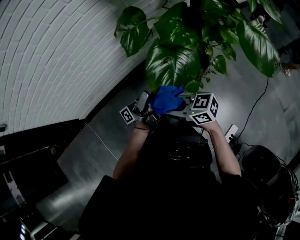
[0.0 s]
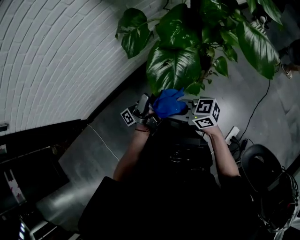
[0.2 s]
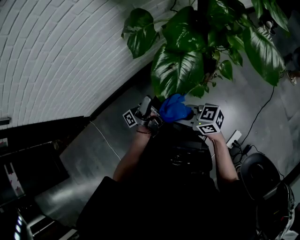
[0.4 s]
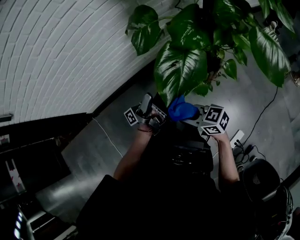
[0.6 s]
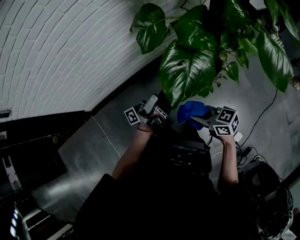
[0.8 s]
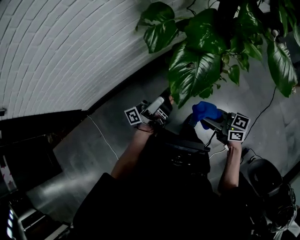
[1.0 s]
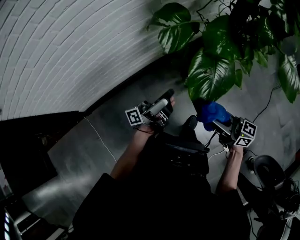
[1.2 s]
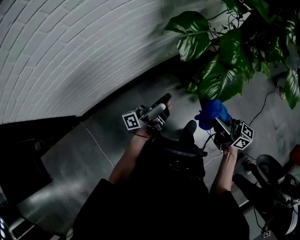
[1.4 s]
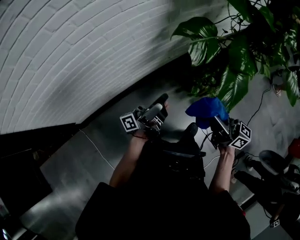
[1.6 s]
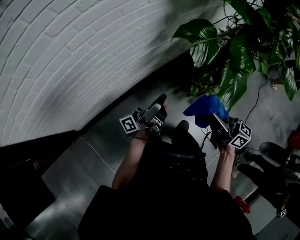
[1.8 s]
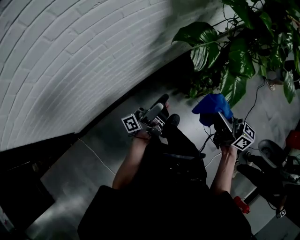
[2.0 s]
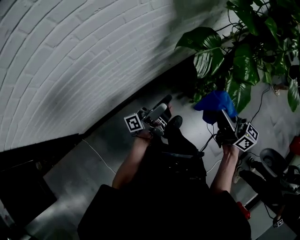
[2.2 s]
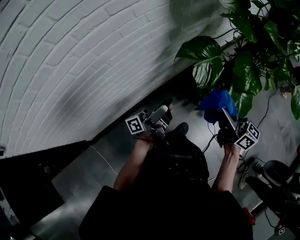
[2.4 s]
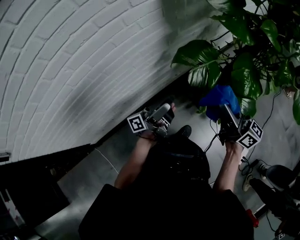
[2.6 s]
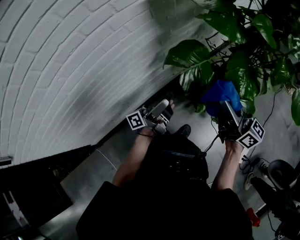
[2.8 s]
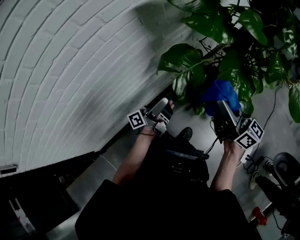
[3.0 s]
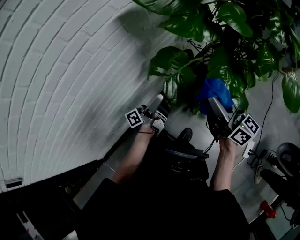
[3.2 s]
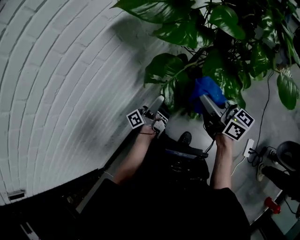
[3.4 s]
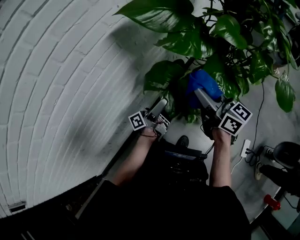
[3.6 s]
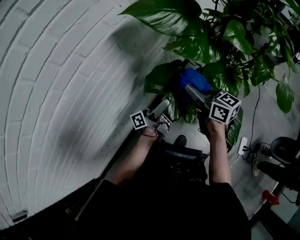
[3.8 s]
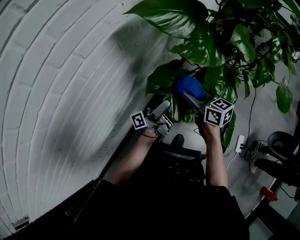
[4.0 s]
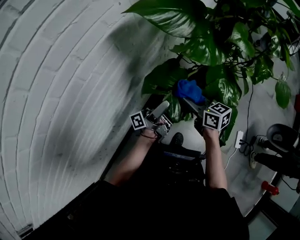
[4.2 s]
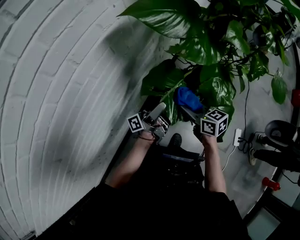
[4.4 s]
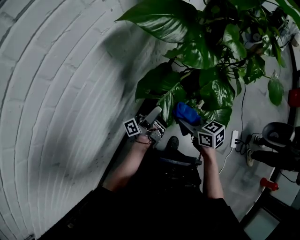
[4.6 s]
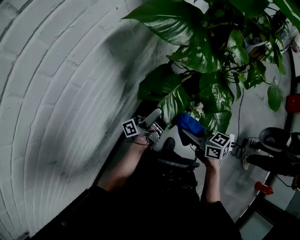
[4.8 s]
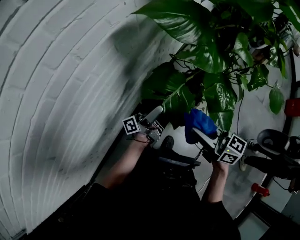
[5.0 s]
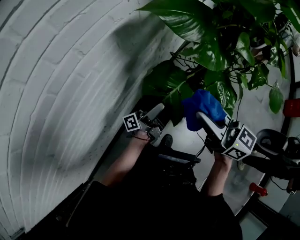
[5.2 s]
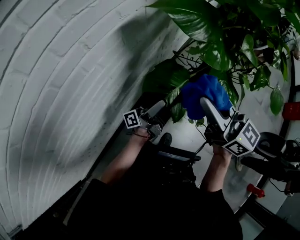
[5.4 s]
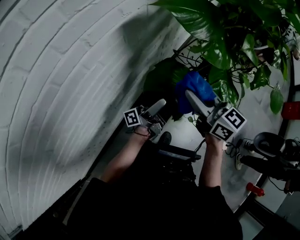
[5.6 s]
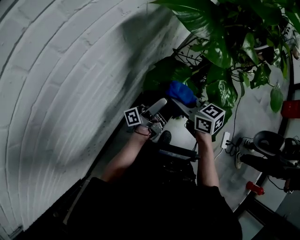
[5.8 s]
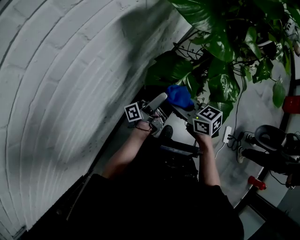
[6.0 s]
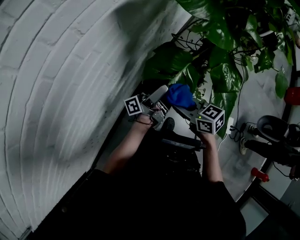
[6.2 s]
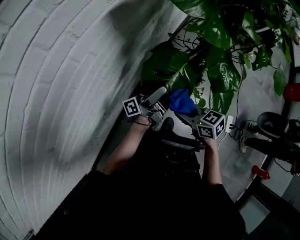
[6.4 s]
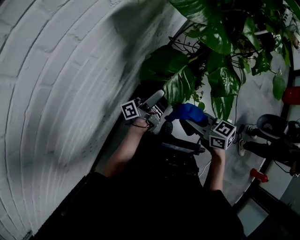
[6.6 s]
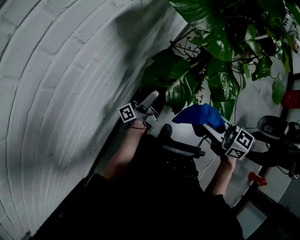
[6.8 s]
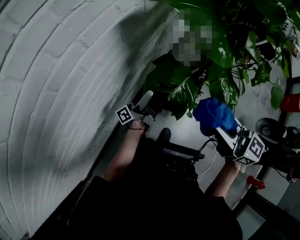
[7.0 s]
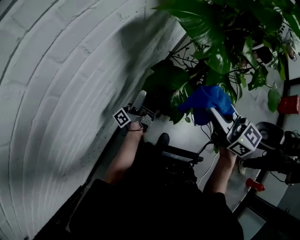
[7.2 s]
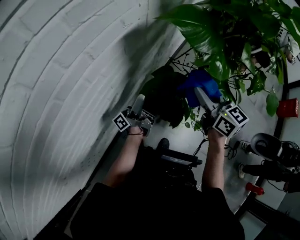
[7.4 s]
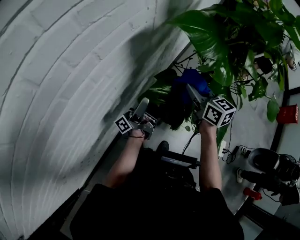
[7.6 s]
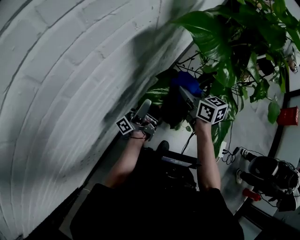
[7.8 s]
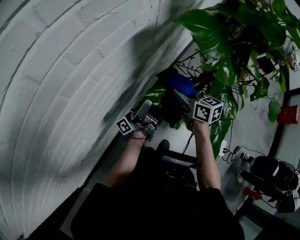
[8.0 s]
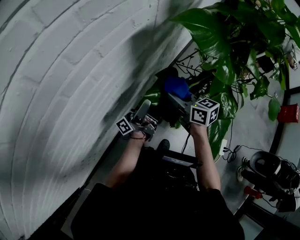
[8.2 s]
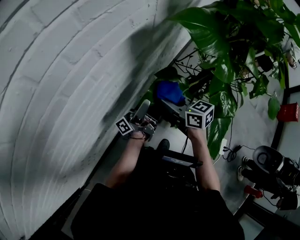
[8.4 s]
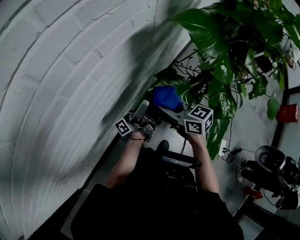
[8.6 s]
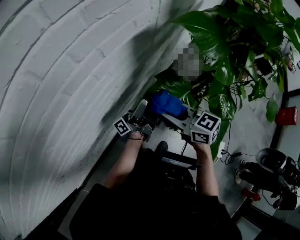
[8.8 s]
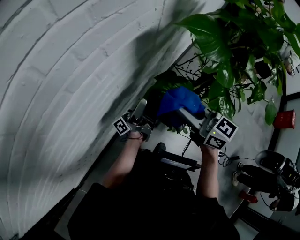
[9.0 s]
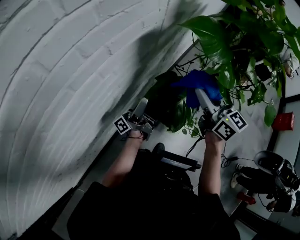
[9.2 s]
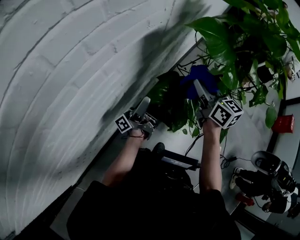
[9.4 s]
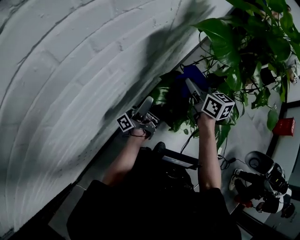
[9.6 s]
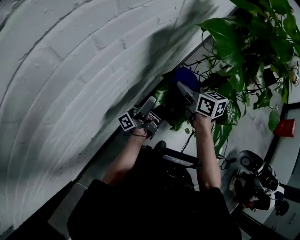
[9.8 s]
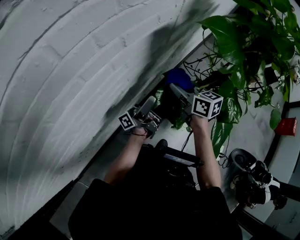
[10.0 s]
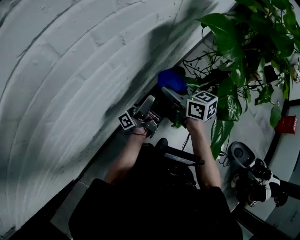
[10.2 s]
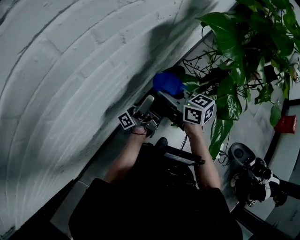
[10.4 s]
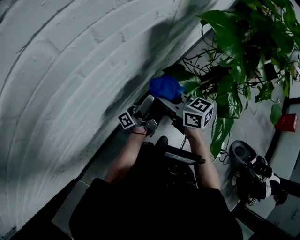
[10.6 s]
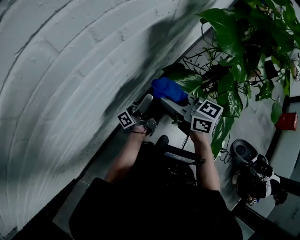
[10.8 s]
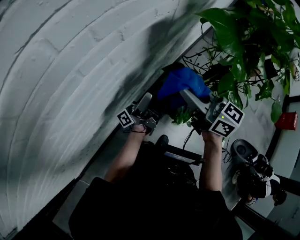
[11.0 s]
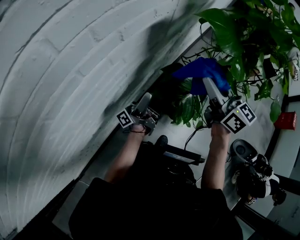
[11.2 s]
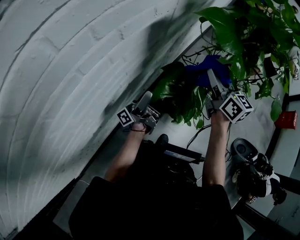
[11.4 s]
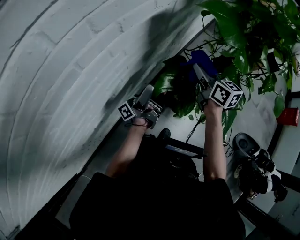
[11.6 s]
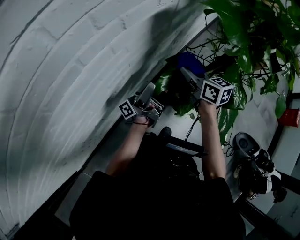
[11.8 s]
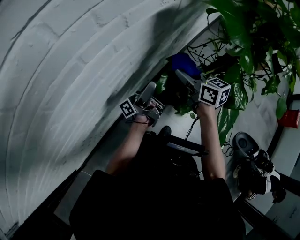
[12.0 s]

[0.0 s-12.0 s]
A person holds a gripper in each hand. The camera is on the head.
0.0 to 1.6 s: The right gripper changes place by about 15 cm, and turns by approximately 40 degrees.
1.6 to 3.0 s: The right gripper moves some 25 cm, and turns by some 20 degrees.
3.0 to 4.4 s: The right gripper goes roughly 15 cm downward, and points its fingers some 30 degrees further downward.
4.4 to 6.0 s: The right gripper moves roughly 25 cm upward and comes back.
6.0 to 7.6 s: The right gripper moves up and down over about 25 cm, changing direction 2 times, and rotates roughly 20 degrees.
7.6 to 9.0 s: The right gripper changes place by approximately 15 cm, and swivels about 20 degrees.
9.0 to 10.4 s: The right gripper moves approximately 15 cm.
10.4 to 12.0 s: The right gripper goes upward and returns, roughly 15 cm each way.

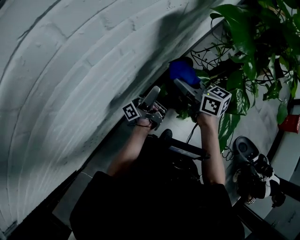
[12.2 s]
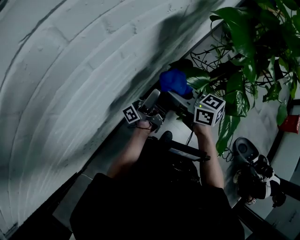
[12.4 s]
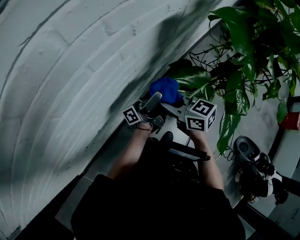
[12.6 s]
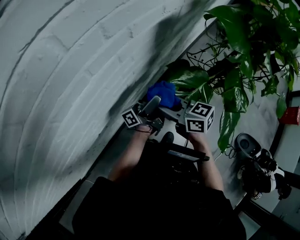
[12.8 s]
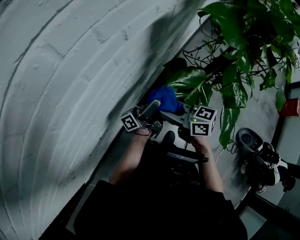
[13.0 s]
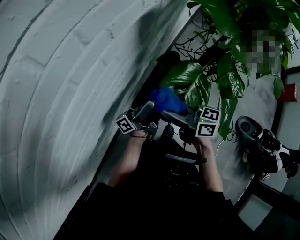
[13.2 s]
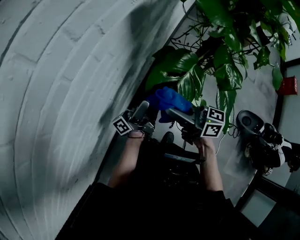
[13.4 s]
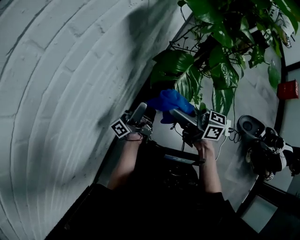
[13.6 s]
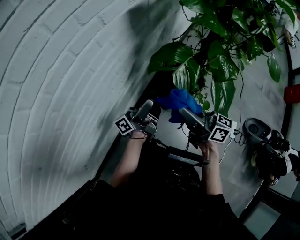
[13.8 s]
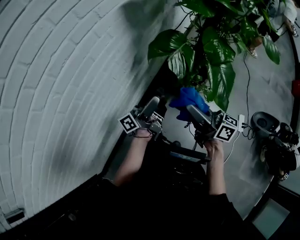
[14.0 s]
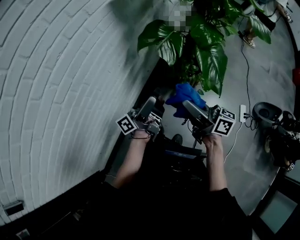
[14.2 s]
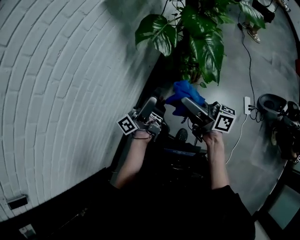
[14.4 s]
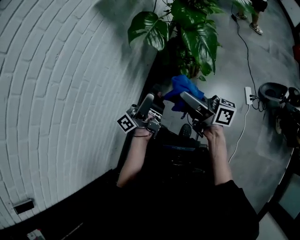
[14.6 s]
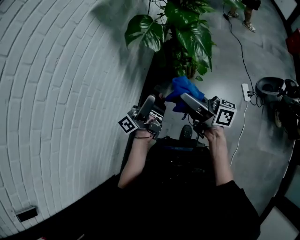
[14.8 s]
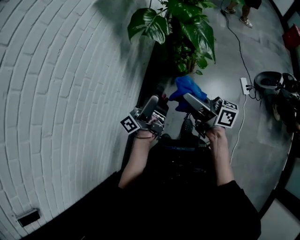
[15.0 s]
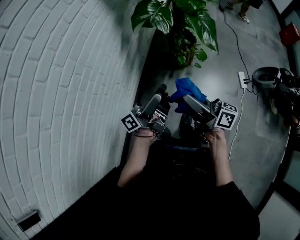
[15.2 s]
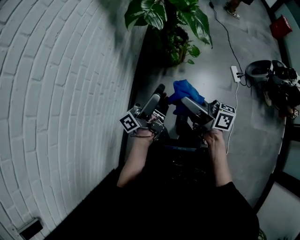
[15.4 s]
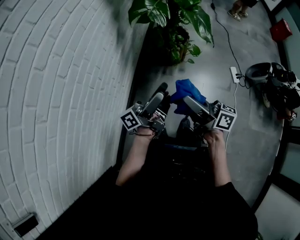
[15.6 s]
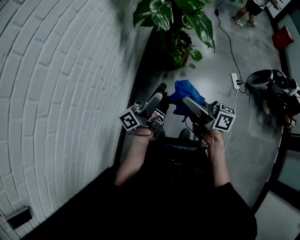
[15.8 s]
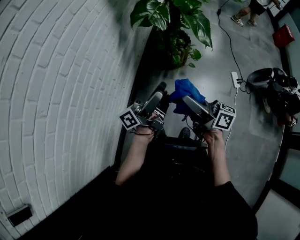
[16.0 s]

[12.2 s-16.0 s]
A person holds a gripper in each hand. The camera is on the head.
12.2 to 13.4 s: The right gripper changes place by approximately 15 cm, and changes its angle by approximately 20 degrees.
13.4 to 14.8 s: The right gripper ends up some 35 cm from where it was, and changes its angle by some 30 degrees.
14.8 to 16.0 s: The right gripper shifts by roughly 15 cm.

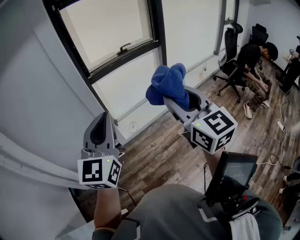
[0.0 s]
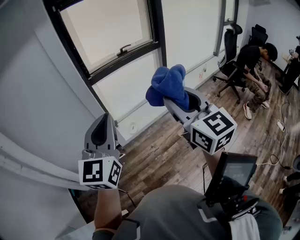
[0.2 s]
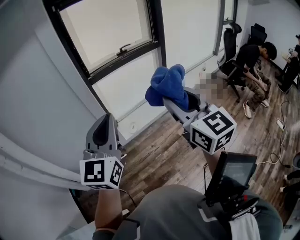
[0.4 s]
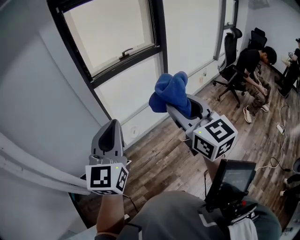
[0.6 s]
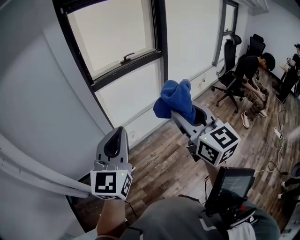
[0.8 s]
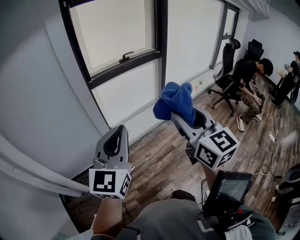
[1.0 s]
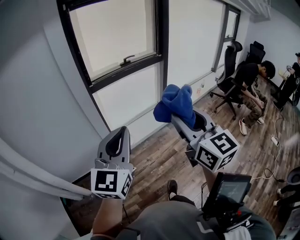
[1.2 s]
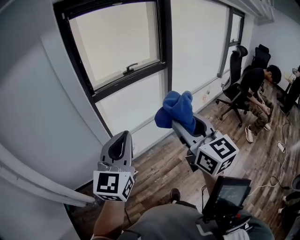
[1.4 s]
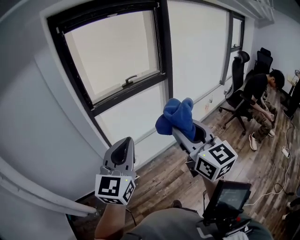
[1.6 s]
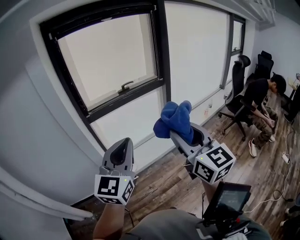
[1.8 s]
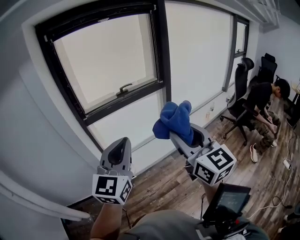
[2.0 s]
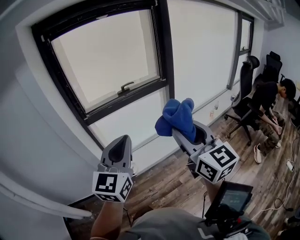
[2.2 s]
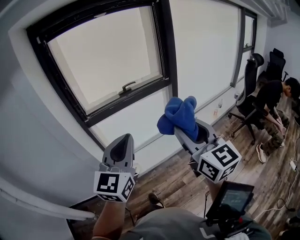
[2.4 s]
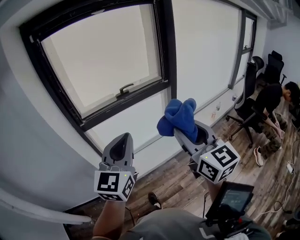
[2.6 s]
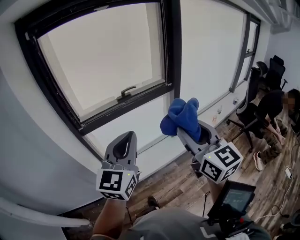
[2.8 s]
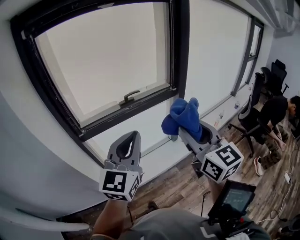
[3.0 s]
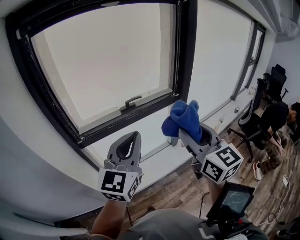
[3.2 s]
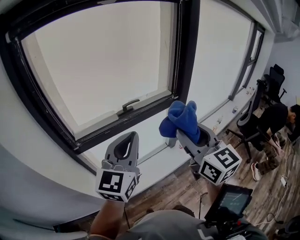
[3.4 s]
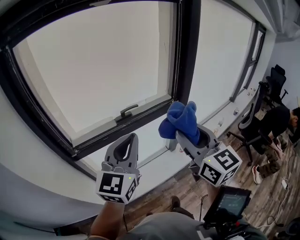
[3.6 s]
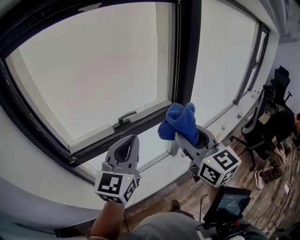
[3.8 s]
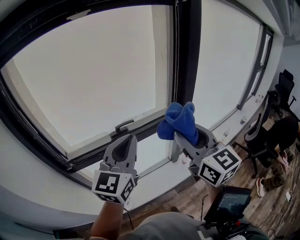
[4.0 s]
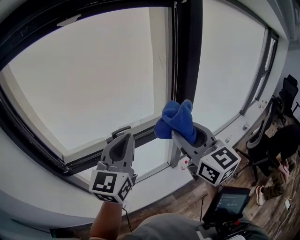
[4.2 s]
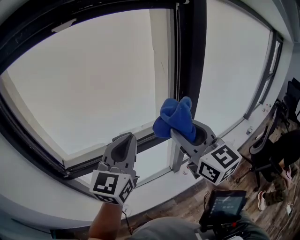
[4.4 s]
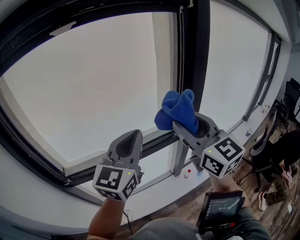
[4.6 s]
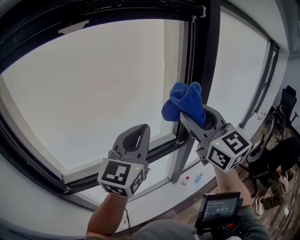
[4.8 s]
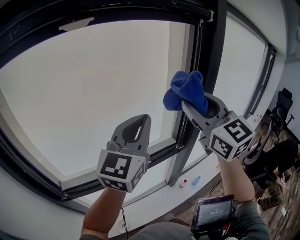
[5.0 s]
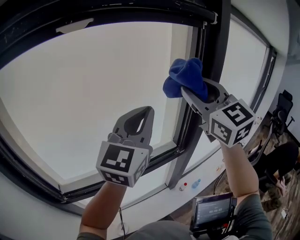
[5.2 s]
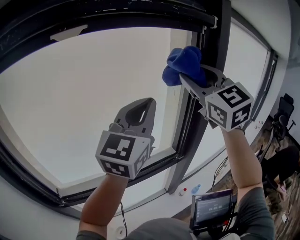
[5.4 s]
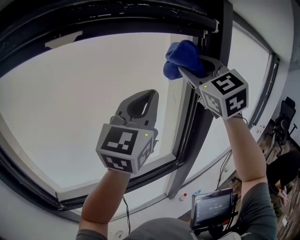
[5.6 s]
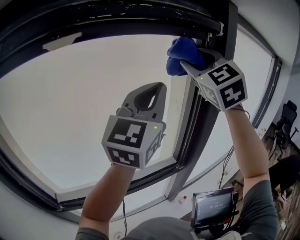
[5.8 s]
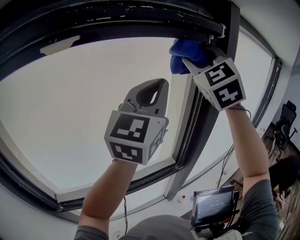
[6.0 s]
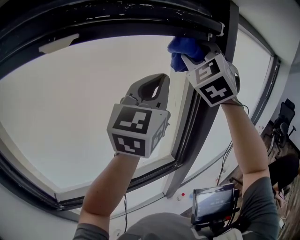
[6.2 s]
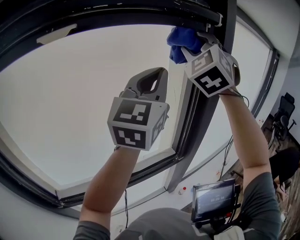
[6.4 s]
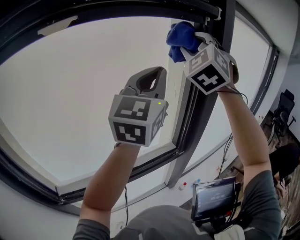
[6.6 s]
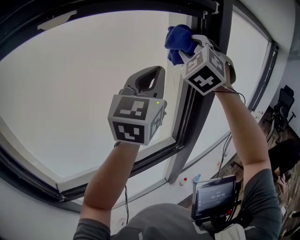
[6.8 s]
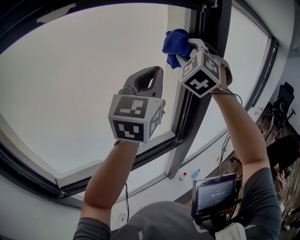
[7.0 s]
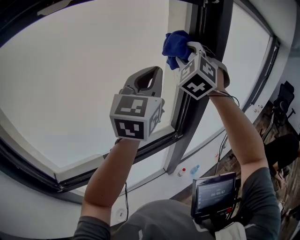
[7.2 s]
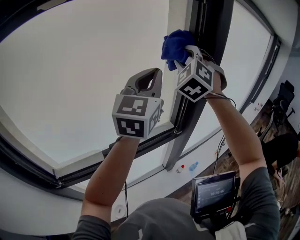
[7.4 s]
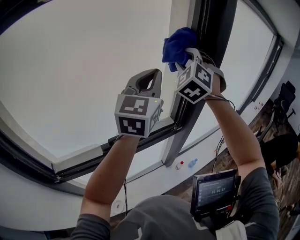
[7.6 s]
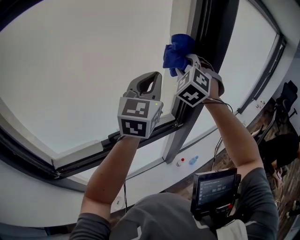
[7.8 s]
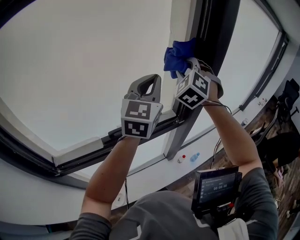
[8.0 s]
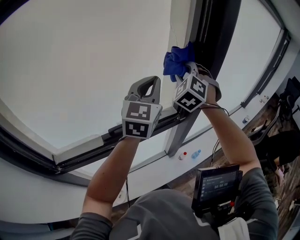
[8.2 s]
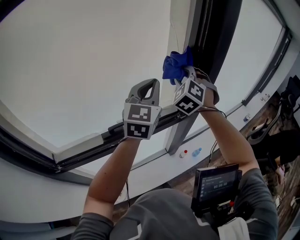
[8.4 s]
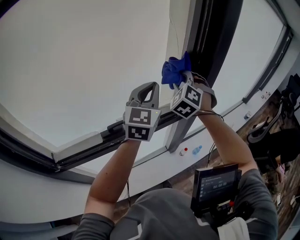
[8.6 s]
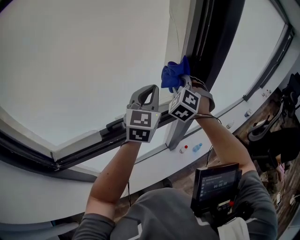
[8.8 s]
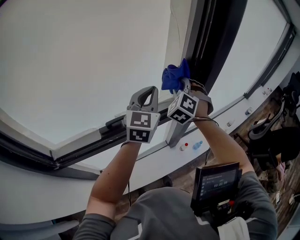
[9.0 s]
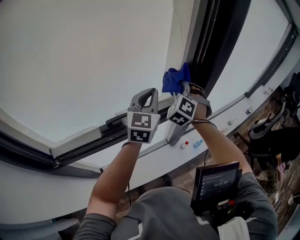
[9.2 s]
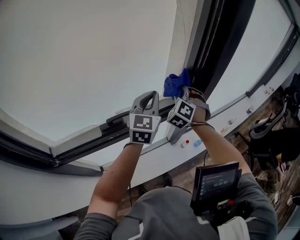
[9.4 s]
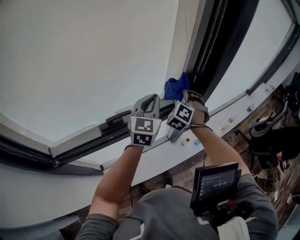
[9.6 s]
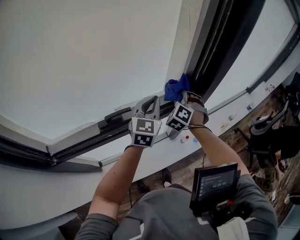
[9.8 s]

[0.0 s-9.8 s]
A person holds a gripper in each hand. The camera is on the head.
0.0 to 1.4 s: Both grippers move forward, approximately 5 cm.
1.4 to 2.8 s: The grippers both shift forward by roughly 35 cm.
2.8 to 4.2 s: Both grippers move forward, about 35 cm.
4.2 to 5.6 s: The two grippers go some 30 cm forward and upward. The right gripper rolls counterclockwise, seen from behind, by some 40 degrees.
5.6 to 7.0 s: The right gripper shifts roughly 10 cm downward and forward, and changes its angle by approximately 40 degrees.
7.0 to 8.4 s: Both grippers move downward, roughly 20 cm.
8.4 to 9.8 s: The two grippers go roughly 20 cm downward.
